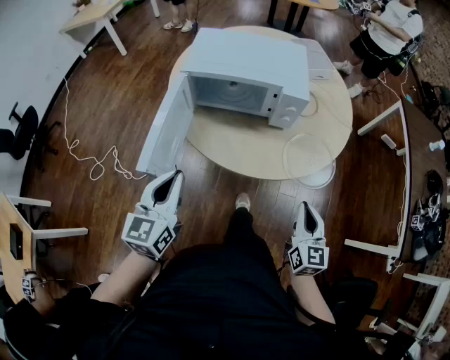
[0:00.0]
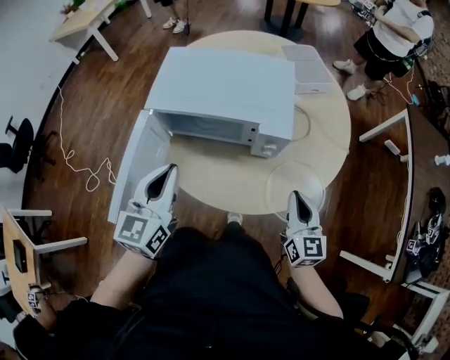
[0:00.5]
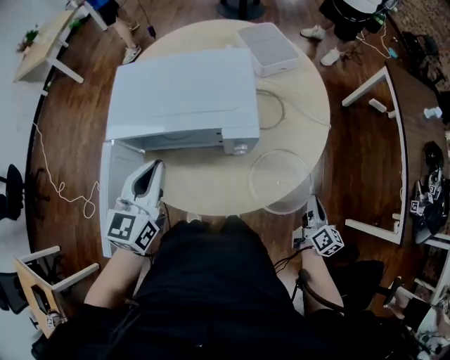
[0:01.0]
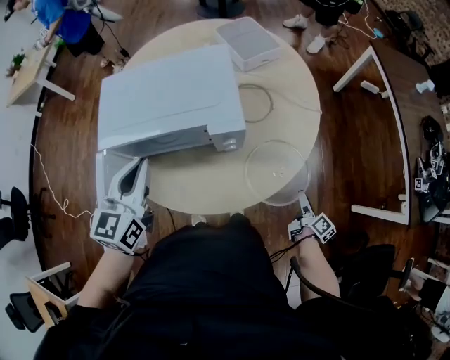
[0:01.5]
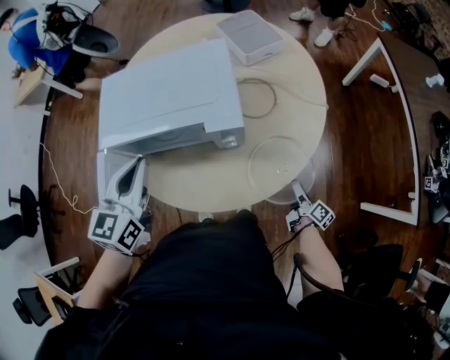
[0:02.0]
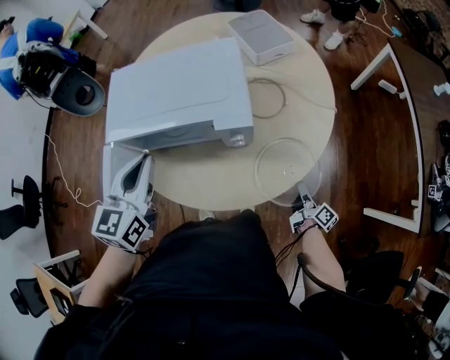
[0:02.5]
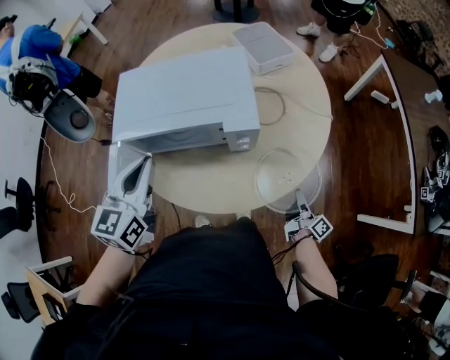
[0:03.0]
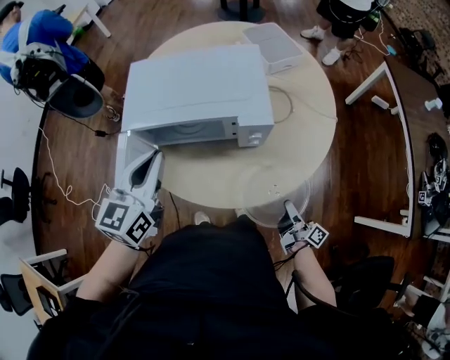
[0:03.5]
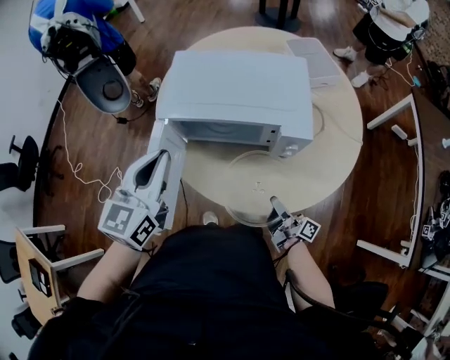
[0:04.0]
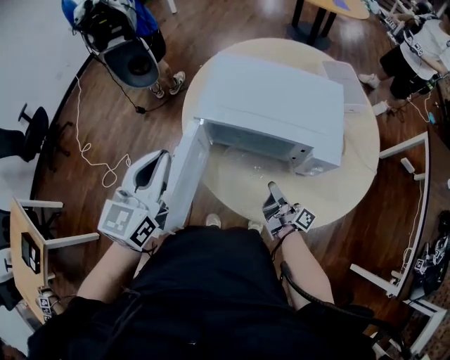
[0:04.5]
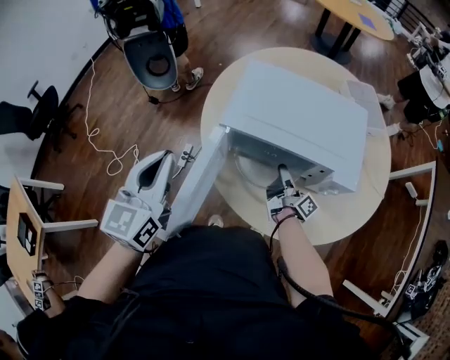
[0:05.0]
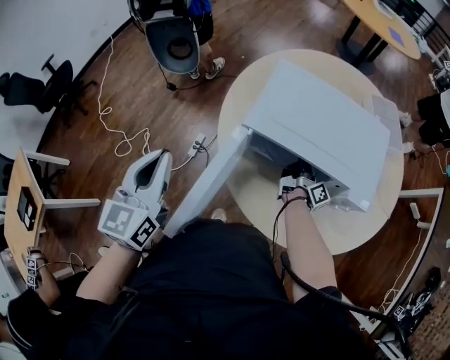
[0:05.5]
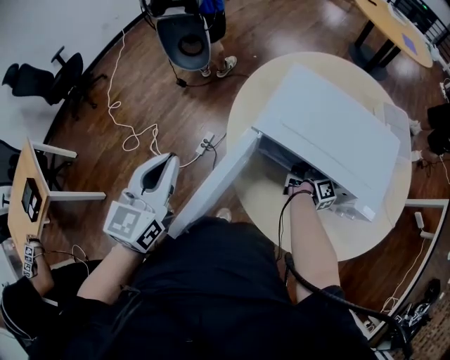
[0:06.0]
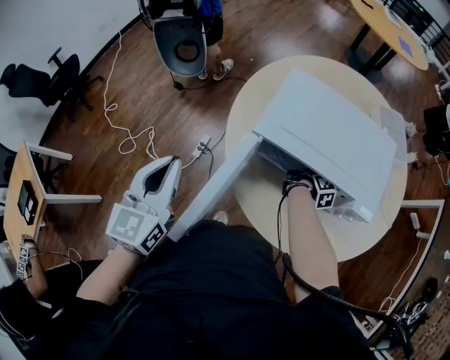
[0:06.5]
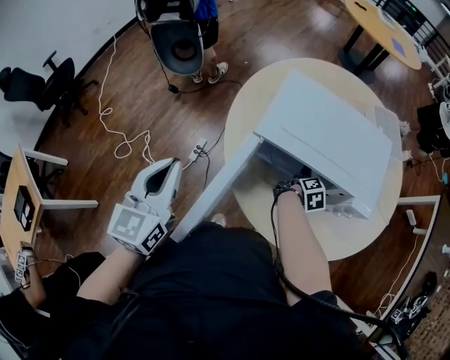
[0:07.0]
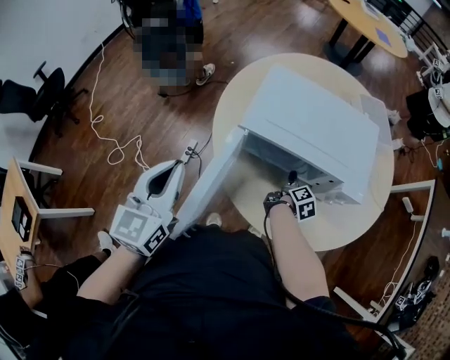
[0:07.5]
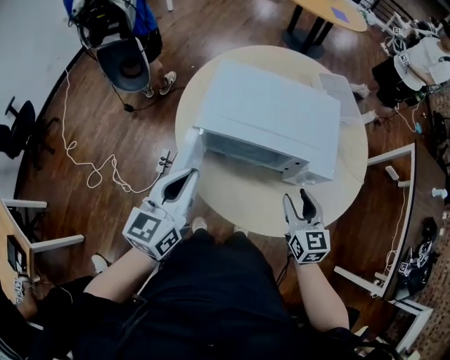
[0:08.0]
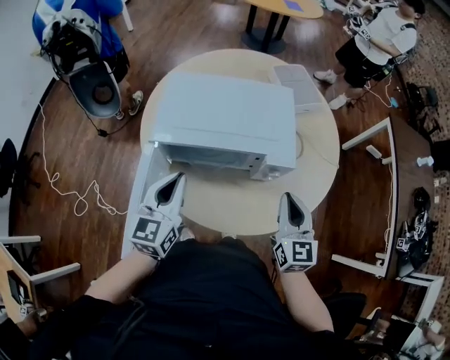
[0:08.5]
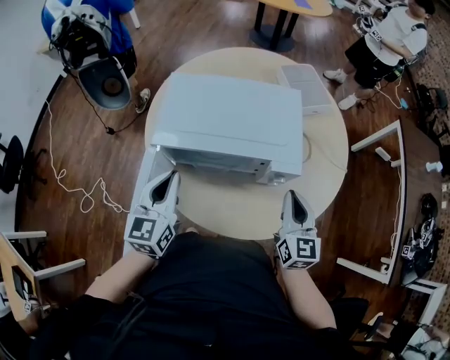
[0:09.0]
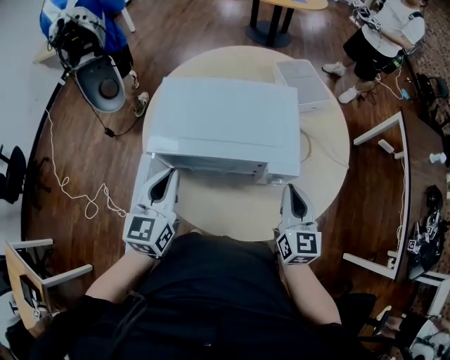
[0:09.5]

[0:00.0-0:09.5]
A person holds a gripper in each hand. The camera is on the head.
0:00.0 to 0:02.0: The right gripper goes about 30 cm downward, forward and to the right, twists some 70 degrees clockwise, seen from behind, and opens; the left gripper goes about 25 cm forward.
0:02.0 to 0:04.0: The right gripper heads to the left and upward, covering some 25 cm, changes its angle by some 40 degrees, and closes. The left gripper shifts roughly 10 cm to the left.
0:04.0 to 0:05.5: The right gripper moves forward, roughly 30 cm, and rotates some 20 degrees. The left gripper shifts some 15 cm to the left, and rotates about 20 degrees.
0:05.5 to 0:07.5: The right gripper is displaced backward and downward by approximately 10 cm, tips its fingers downward by roughly 40 degrees, and opens.
0:07.5 to 0:09.5: The left gripper travels to the right and forward by approximately 20 cm. Meanwhile the right gripper shifts about 25 cm upward and to the right, twists about 50 degrees counterclockwise, seen from behind, and closes its fingers.

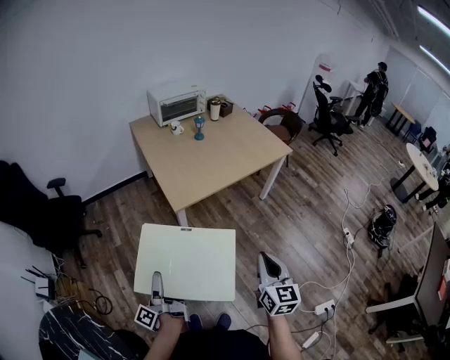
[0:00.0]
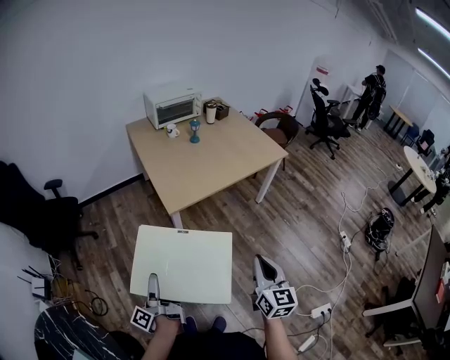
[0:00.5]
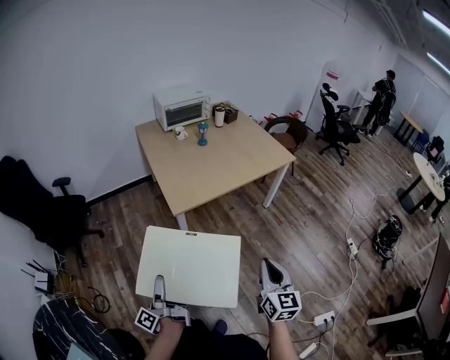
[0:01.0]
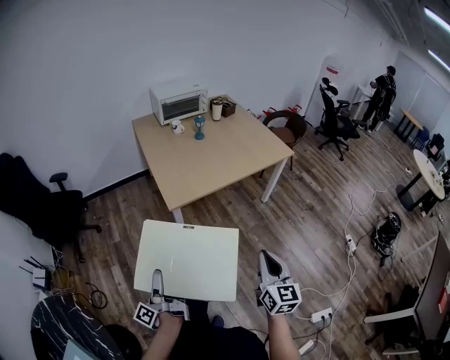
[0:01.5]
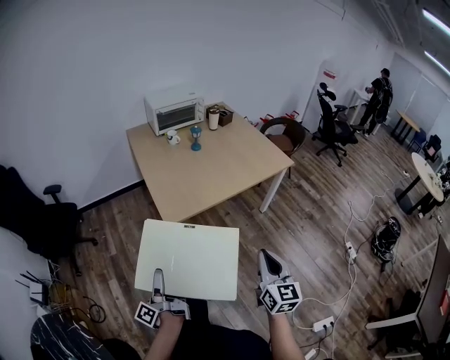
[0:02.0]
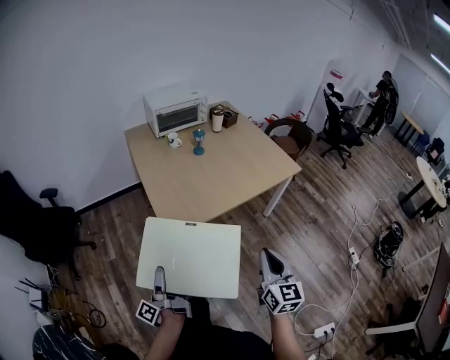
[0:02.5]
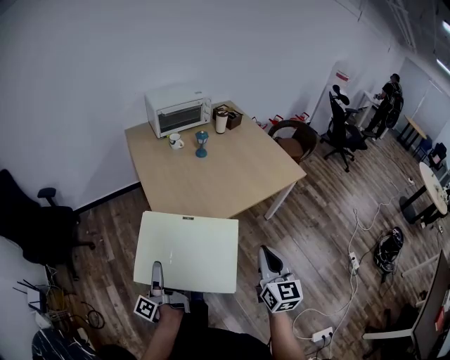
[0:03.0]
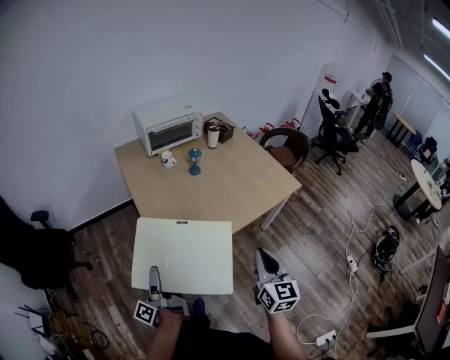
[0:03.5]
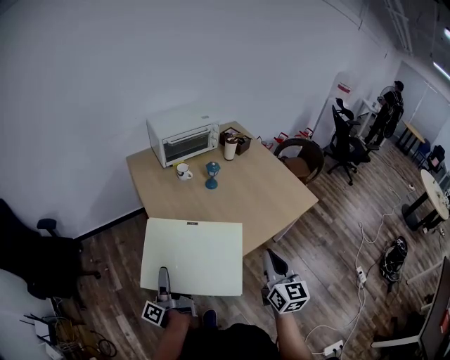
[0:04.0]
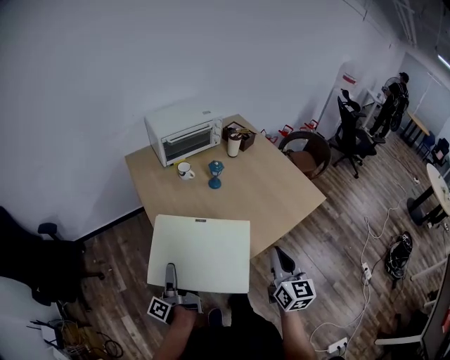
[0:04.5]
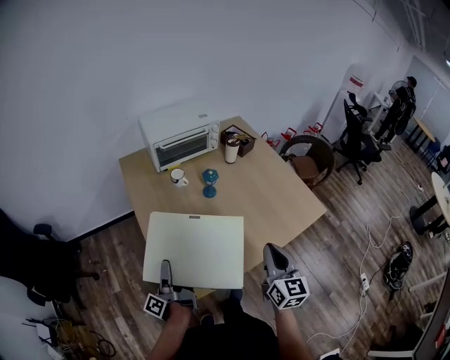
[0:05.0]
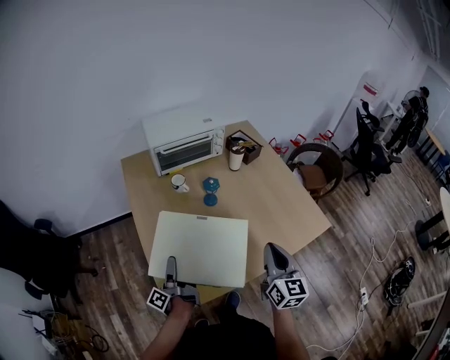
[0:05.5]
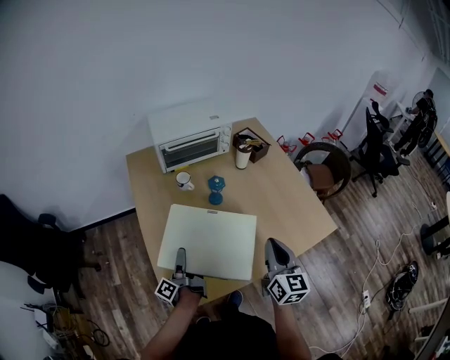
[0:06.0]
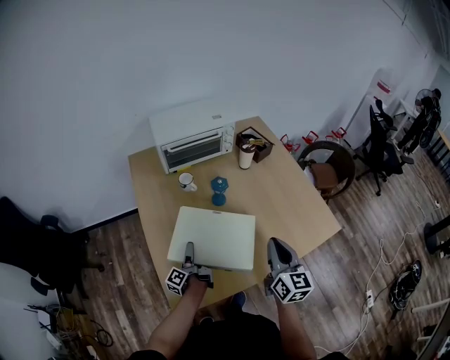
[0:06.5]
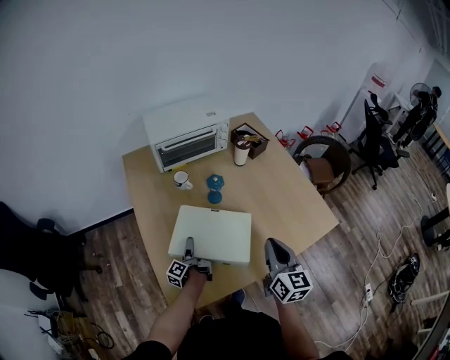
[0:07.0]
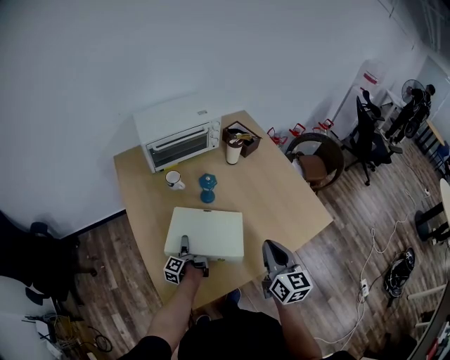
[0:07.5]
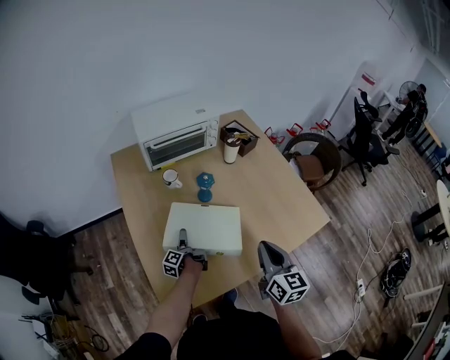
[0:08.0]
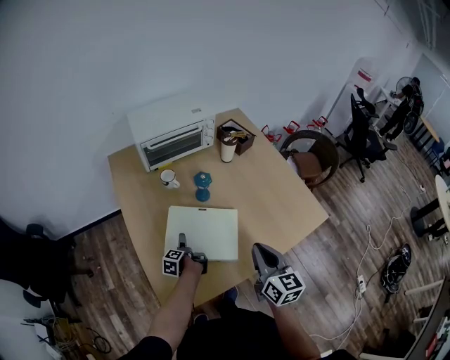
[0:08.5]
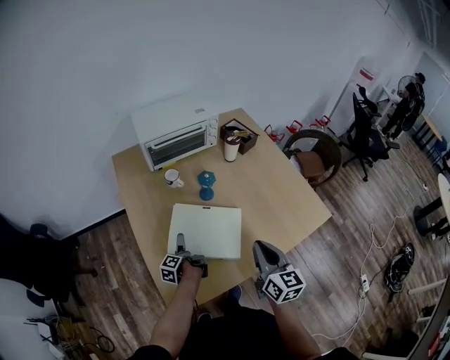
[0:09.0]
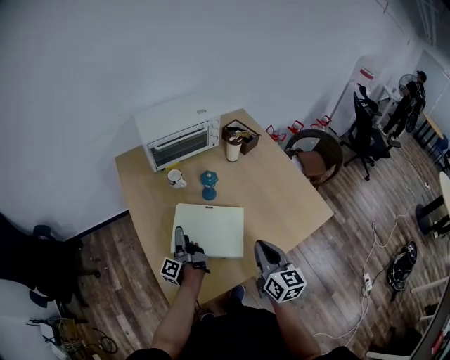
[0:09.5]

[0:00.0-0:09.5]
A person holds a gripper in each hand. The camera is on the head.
0:00.0 to 0:02.0: The right gripper shifts by approximately 10 cm.
0:02.0 to 0:04.0: The right gripper ends up about 35 cm from where it was.
0:04.0 to 0:05.5: The right gripper ends up approximately 25 cm from where it was.
0:05.5 to 0:07.5: The right gripper moves about 5 cm.

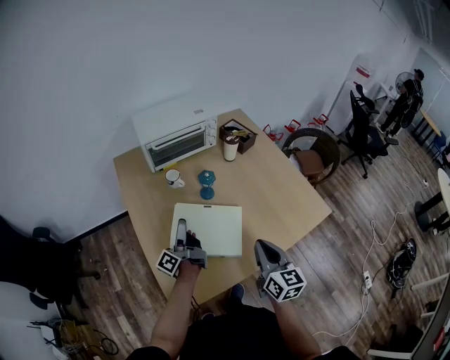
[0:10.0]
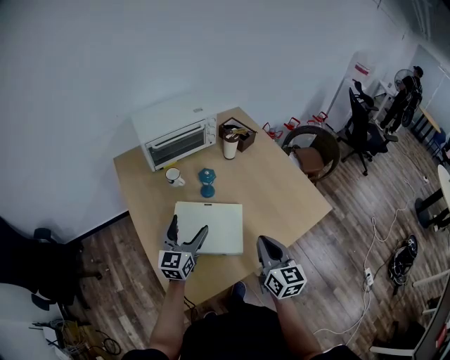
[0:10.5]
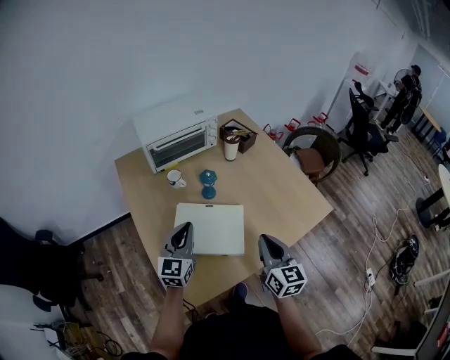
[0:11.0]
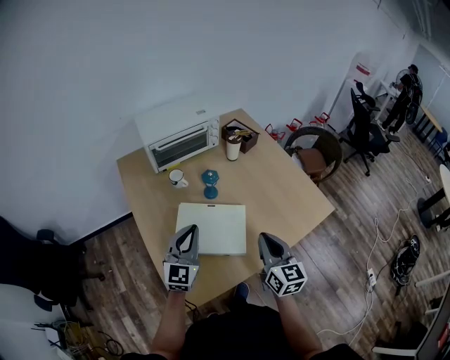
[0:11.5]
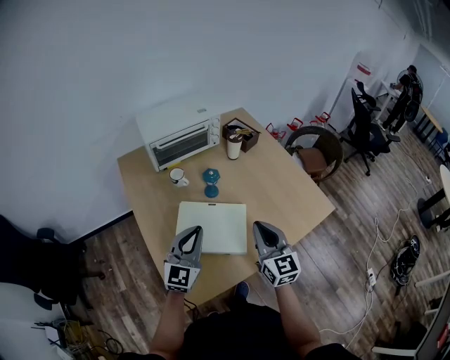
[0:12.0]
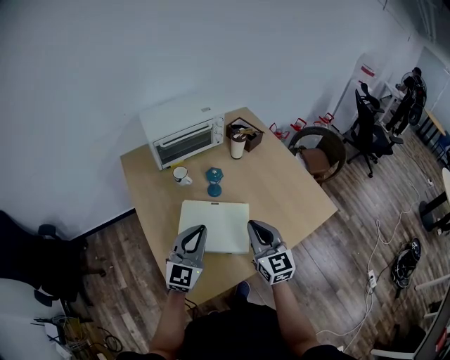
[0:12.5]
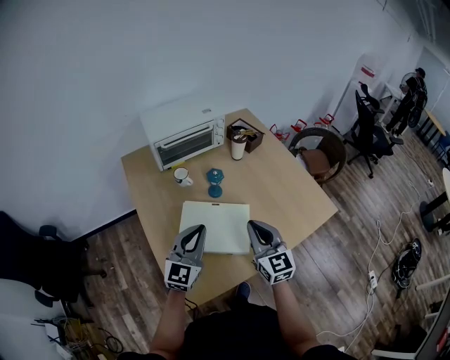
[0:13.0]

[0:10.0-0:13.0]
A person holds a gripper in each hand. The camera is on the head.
0:11.5 to 0:13.0: The right gripper shifts by about 5 cm.

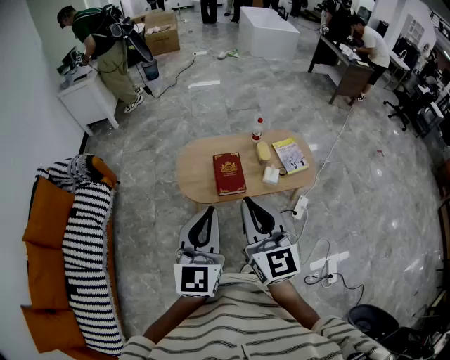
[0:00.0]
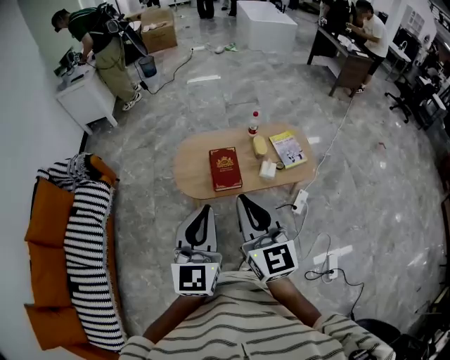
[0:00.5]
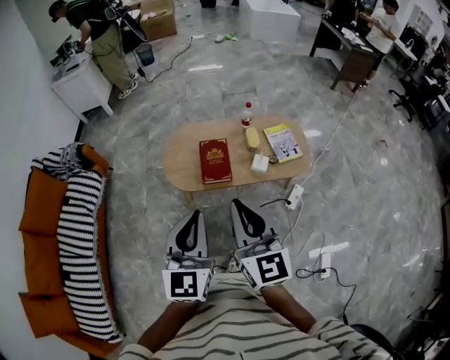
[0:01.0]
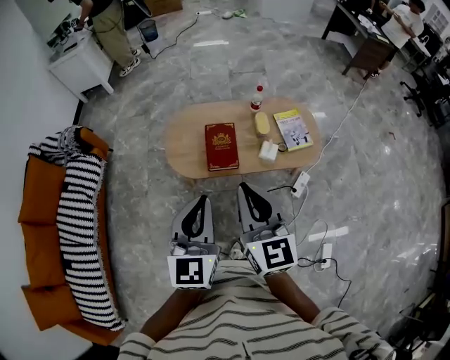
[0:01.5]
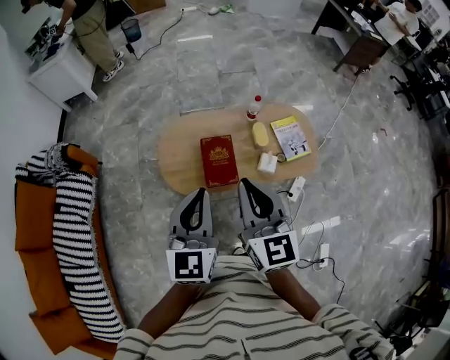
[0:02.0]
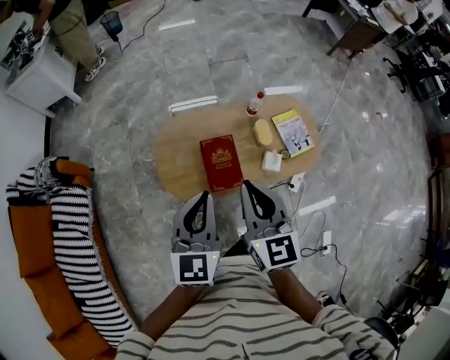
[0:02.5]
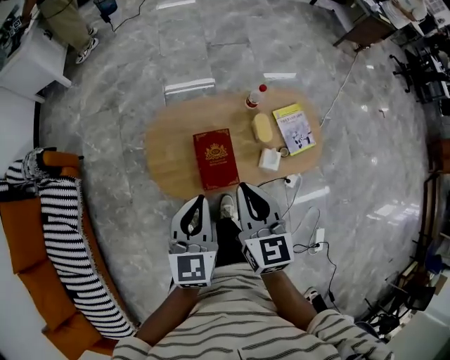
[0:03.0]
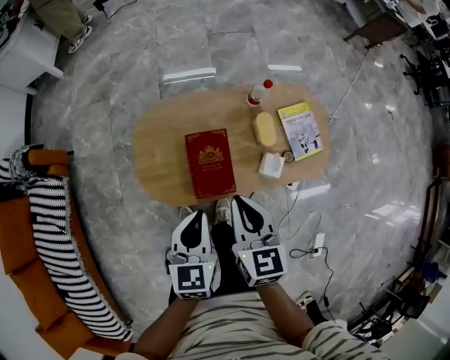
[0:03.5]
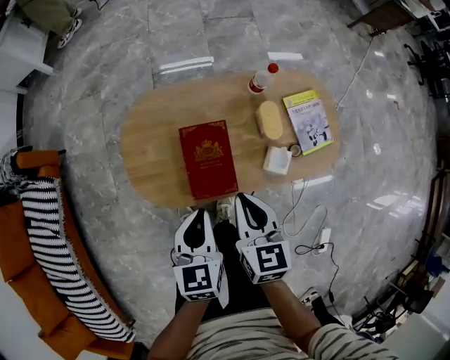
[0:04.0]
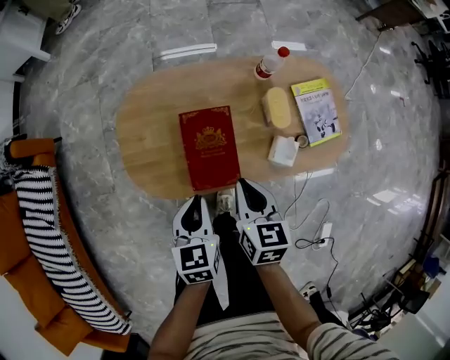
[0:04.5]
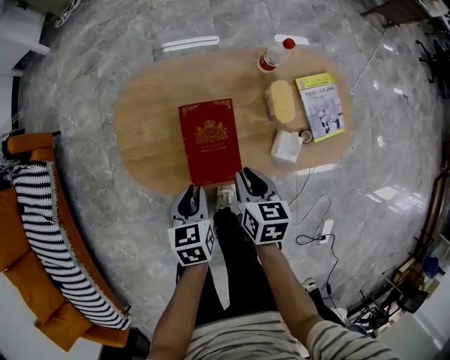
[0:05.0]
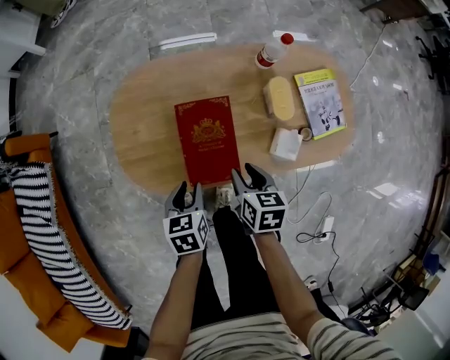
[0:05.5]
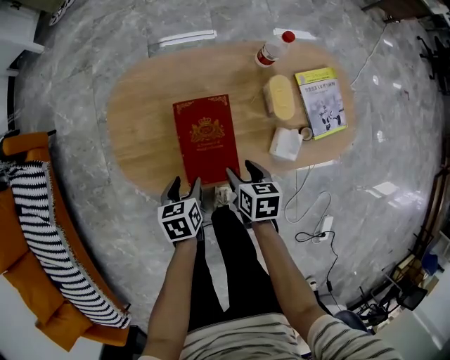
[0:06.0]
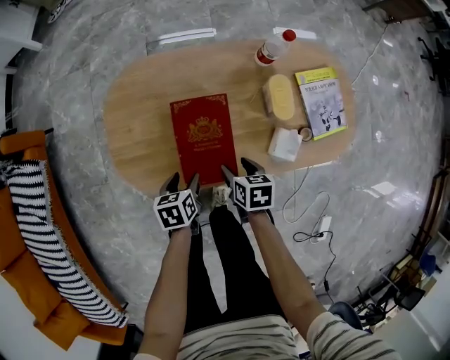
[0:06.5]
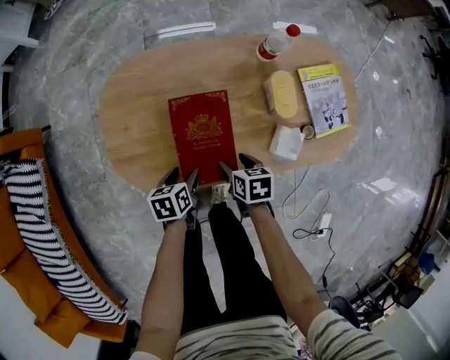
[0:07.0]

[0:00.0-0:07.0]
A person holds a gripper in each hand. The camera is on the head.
0:00.0 to 0:02.0: The two grippers go about 20 cm forward.
0:02.0 to 0:03.5: Both grippers move downward and forward, some 25 cm. The left gripper rotates roughly 30 degrees. The right gripper rotates about 20 degrees.
0:03.5 to 0:05.0: Both grippers move downward, approximately 25 cm. The left gripper rotates approximately 20 degrees. The right gripper turns by some 20 degrees.
0:05.0 to 0:07.0: Both grippers move downward, some 15 cm. The left gripper swivels some 20 degrees, and opens up. The right gripper opens its fingers.
